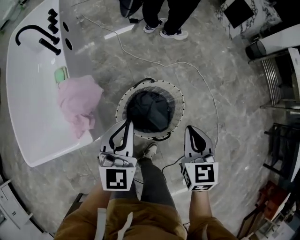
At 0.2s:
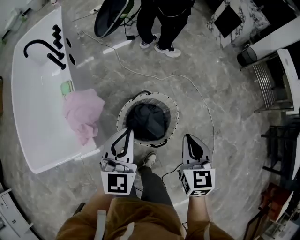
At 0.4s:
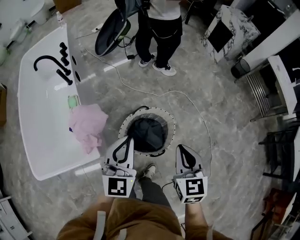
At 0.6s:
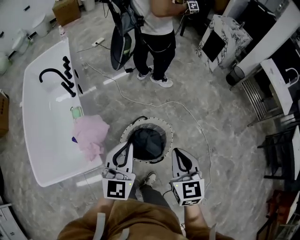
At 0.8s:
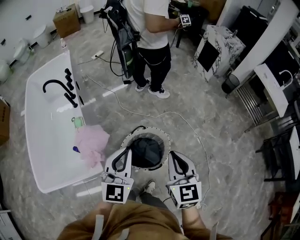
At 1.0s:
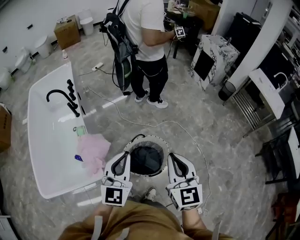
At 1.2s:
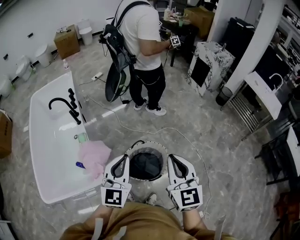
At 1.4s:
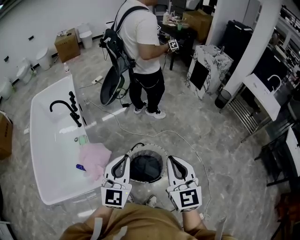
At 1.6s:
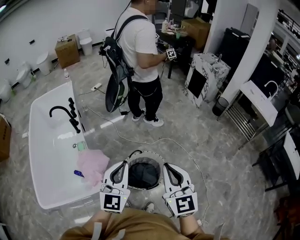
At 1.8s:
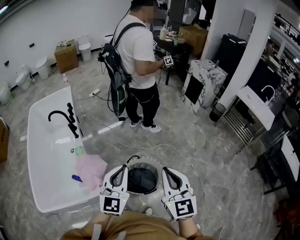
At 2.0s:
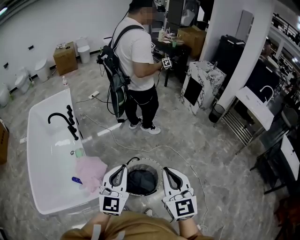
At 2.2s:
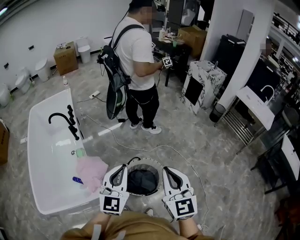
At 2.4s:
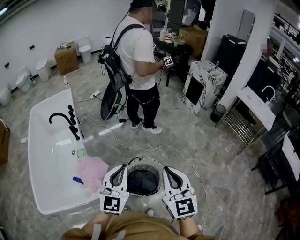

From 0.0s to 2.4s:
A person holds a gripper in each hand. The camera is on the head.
From 0.0s to 1.2s: The two grippers go some 30 cm upward. The right gripper turns by some 30 degrees.
From 1.2s to 2.4s: There are only small adjustments of the grippers.

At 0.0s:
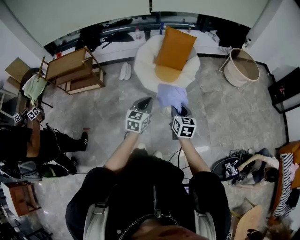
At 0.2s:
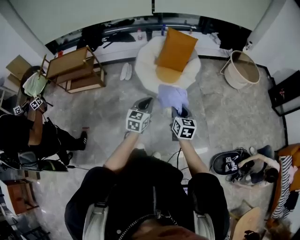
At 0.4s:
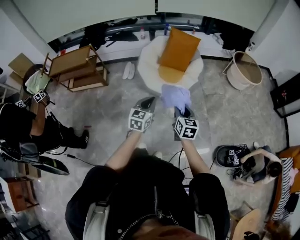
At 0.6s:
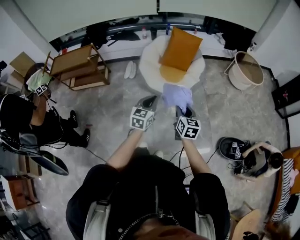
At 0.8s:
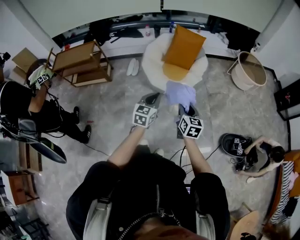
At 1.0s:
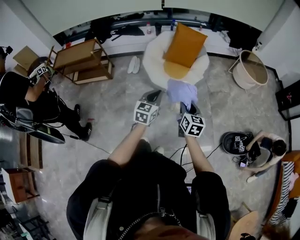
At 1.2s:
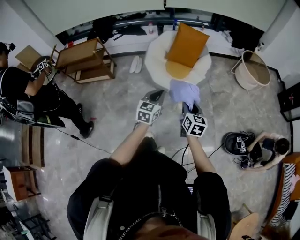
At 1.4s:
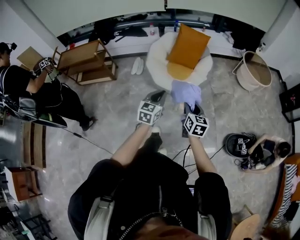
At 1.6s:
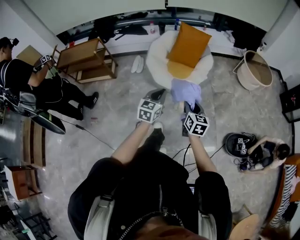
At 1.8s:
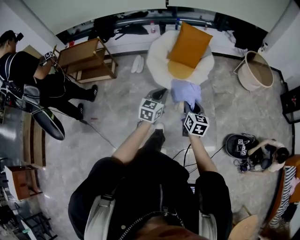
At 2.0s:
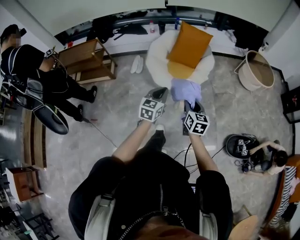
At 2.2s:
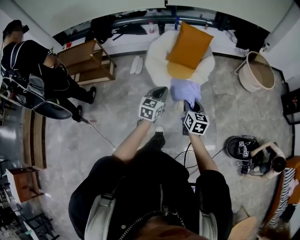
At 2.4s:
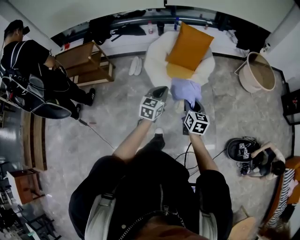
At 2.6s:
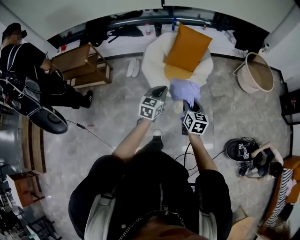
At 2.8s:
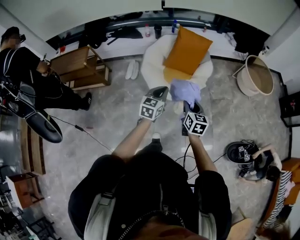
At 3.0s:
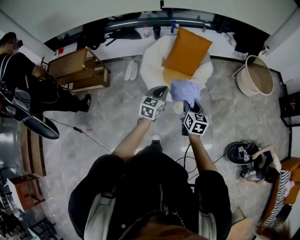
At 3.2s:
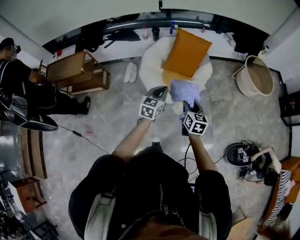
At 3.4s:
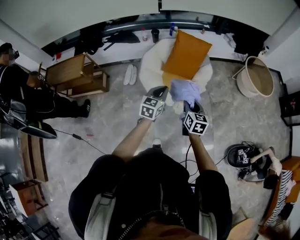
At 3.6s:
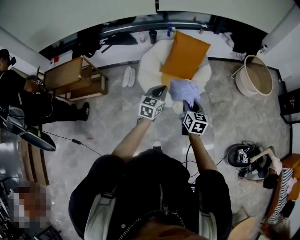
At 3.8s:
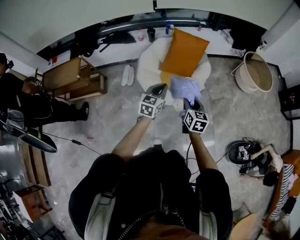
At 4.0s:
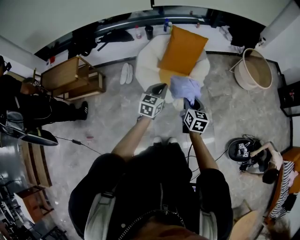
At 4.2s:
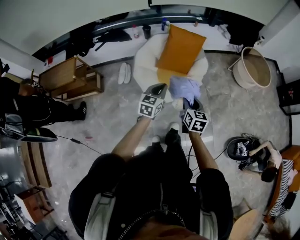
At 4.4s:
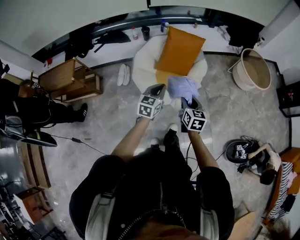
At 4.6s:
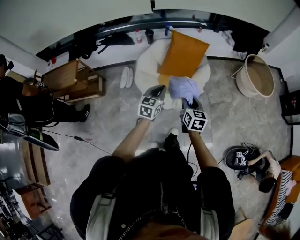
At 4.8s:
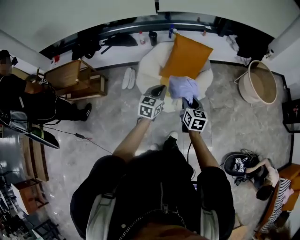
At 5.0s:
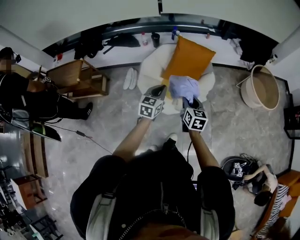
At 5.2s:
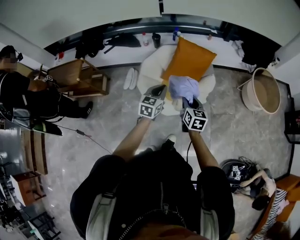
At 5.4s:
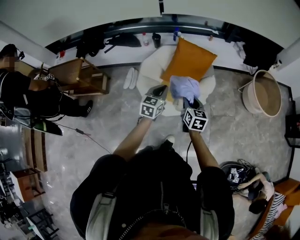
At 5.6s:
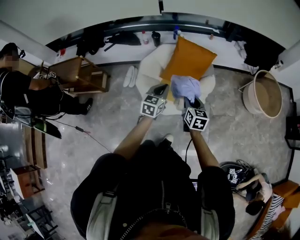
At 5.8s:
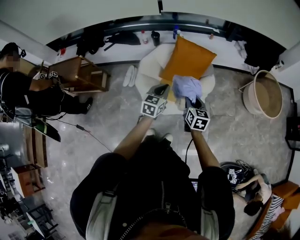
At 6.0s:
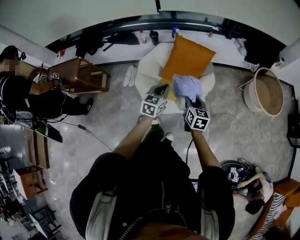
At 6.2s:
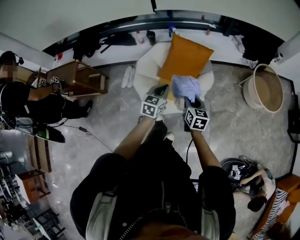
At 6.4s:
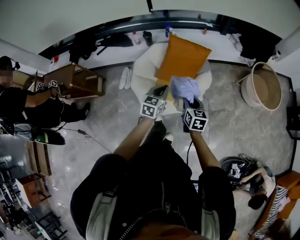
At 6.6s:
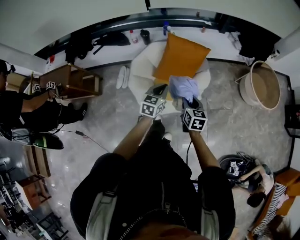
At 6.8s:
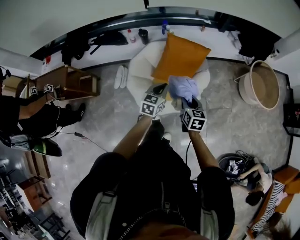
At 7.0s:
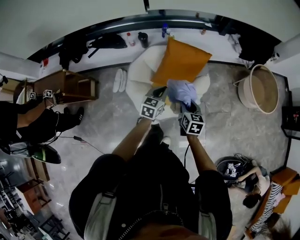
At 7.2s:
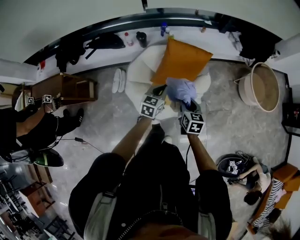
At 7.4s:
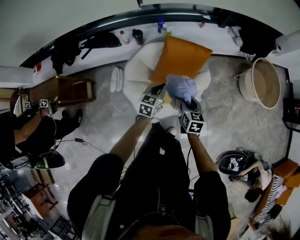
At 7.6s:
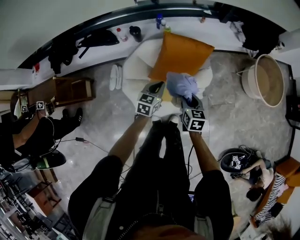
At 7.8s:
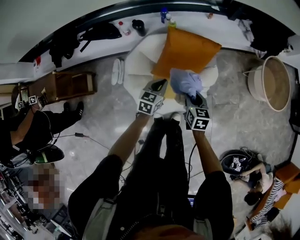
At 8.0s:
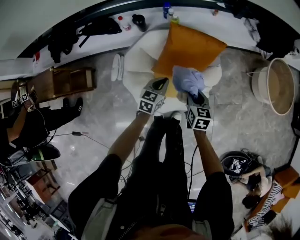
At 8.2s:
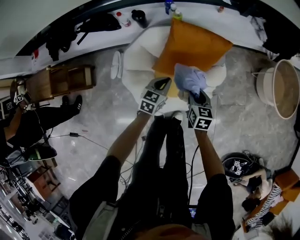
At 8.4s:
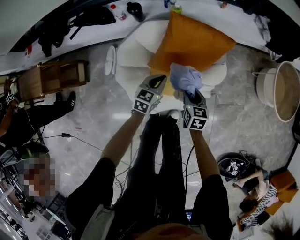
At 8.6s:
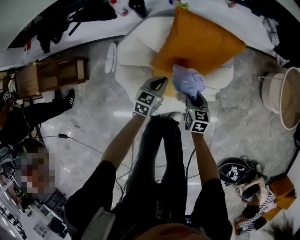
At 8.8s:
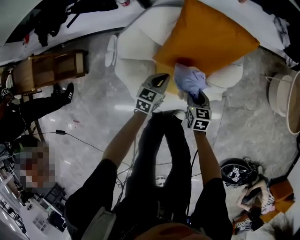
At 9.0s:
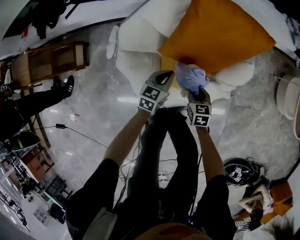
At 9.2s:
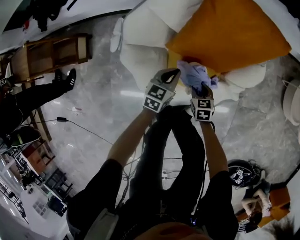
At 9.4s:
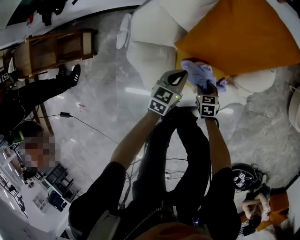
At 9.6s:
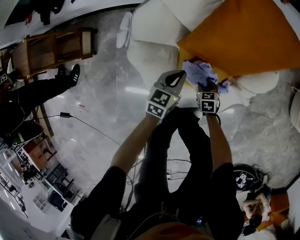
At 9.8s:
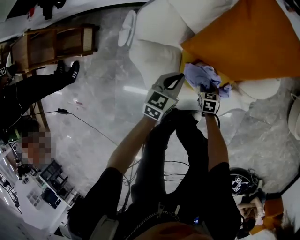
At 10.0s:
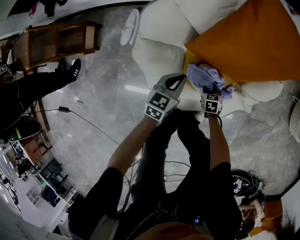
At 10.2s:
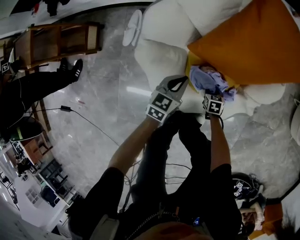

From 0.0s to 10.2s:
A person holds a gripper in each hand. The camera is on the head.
From 0.0s to 1.4s: The grippers stay close to where they were, moving slightly.
From 1.4s to 3.0s: The two grippers go some 25 cm forward.
From 3.0s to 4.4s: Both grippers move forward, about 10 cm.
From 4.4s to 5.8s: The grippers both shift forward and to the right by roughly 15 cm.
From 5.8s to 7.2s: The right gripper goes some 15 cm forward, to the left and downward; the left gripper goes about 15 cm forward and downward.
From 7.2s to 8.8s: The two grippers go approximately 35 cm downward.
From 8.8s to 10.2s: The left gripper moves downward and to the left, about 15 cm. Meanwhile the right gripper is displaced downward by roughly 30 cm, and rotates some 20 degrees.

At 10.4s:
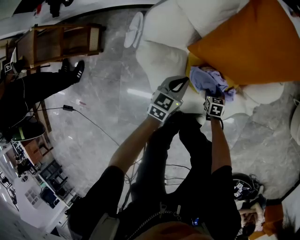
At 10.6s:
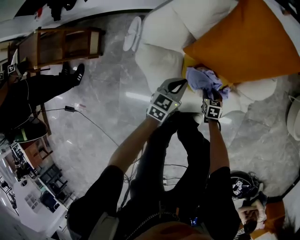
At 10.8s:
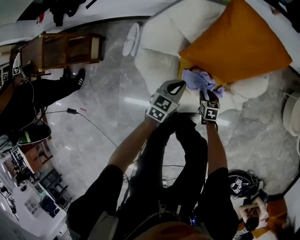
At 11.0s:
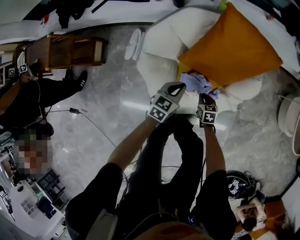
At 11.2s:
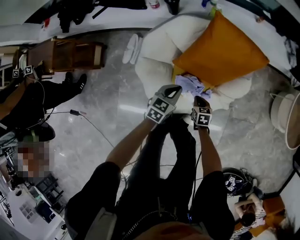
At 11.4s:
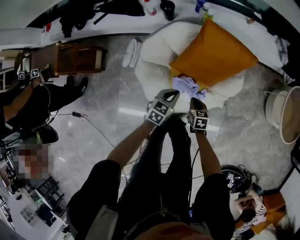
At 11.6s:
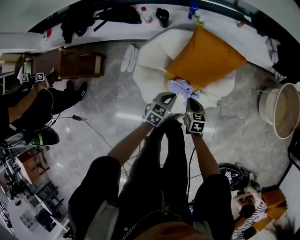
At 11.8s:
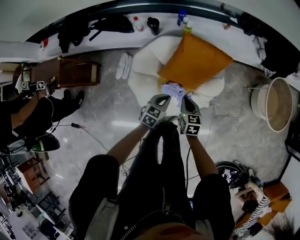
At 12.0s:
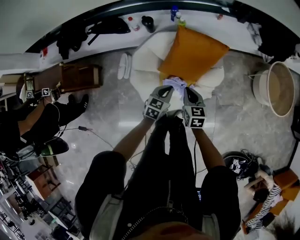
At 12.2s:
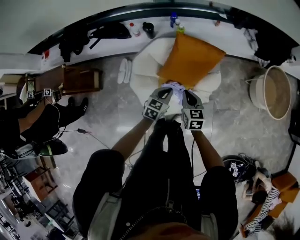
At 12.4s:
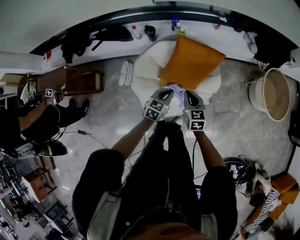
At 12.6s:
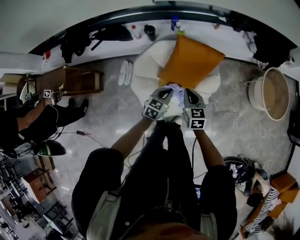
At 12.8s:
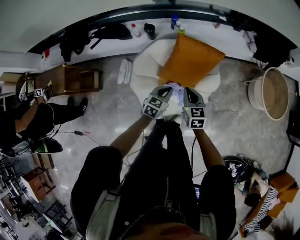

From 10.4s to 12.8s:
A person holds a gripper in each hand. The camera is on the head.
From 10.4s to 11.6s: The left gripper moves upward, about 25 cm. Meanwhile the right gripper heads upward, covering approximately 40 cm, and closes.
From 11.6s to 12.8s: The left gripper is displaced upward by some 10 cm. Meanwhile the right gripper moves upward, approximately 20 cm.

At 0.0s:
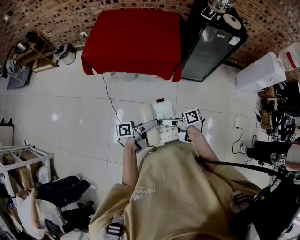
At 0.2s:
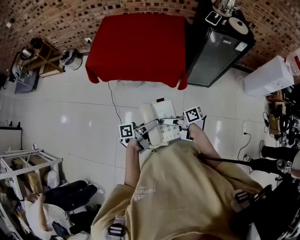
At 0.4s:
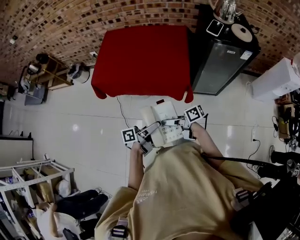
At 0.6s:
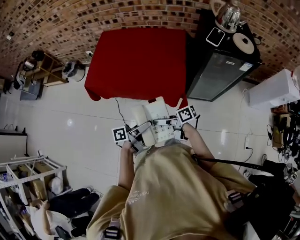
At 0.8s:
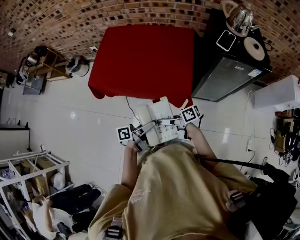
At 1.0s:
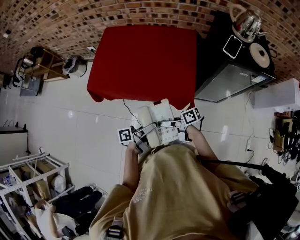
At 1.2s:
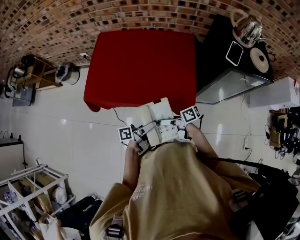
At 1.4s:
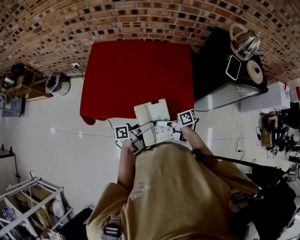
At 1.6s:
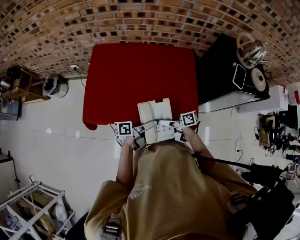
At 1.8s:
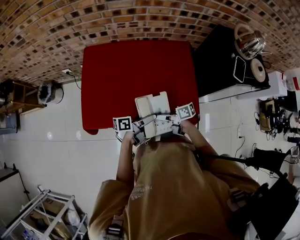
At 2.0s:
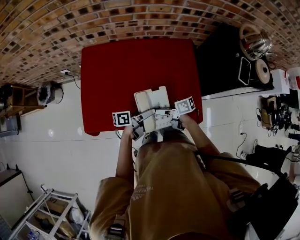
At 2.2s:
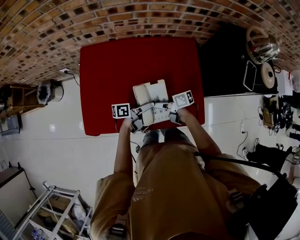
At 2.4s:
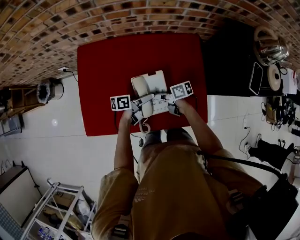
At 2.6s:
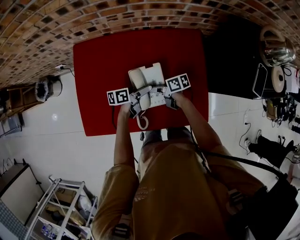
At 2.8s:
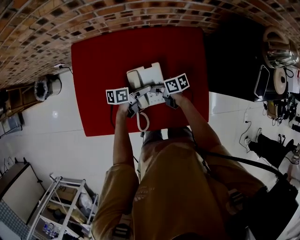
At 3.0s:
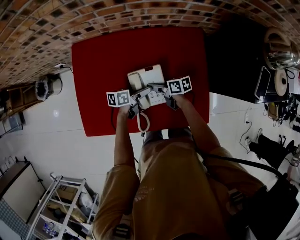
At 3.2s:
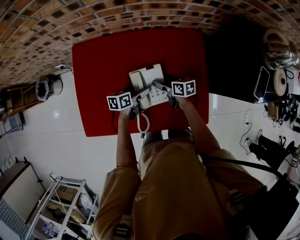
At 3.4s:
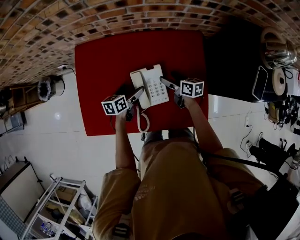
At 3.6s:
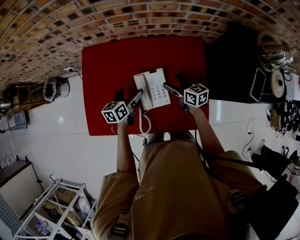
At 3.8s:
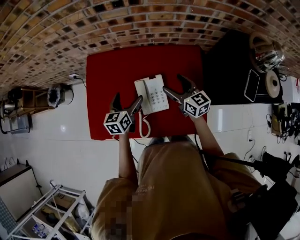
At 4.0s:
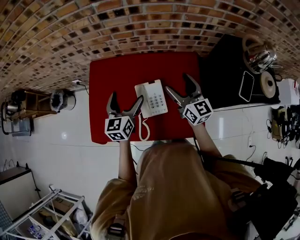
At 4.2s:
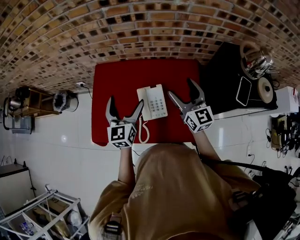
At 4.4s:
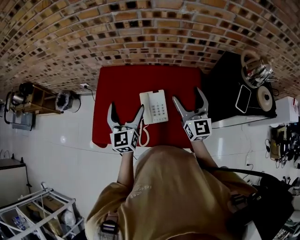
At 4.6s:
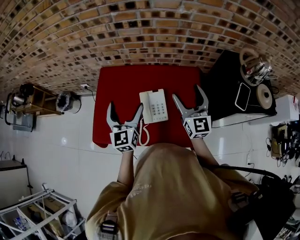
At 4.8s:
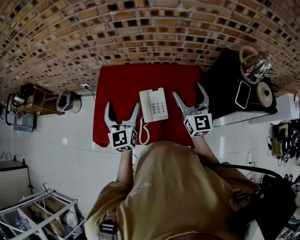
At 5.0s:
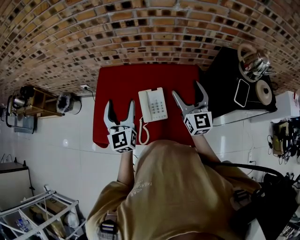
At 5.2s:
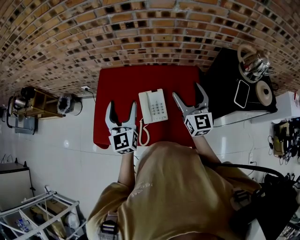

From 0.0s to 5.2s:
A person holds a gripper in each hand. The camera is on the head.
From 0.0s to 1.8s: The two grippers travel together, approximately 60 cm.
From 1.8s to 3.4s: The left gripper ends up about 30 cm from where it was, and points its fingers some 30 degrees further downward, while the right gripper moves approximately 30 cm, and swivels some 30 degrees.
From 3.4s to 5.2s: Both grippers travel together upward, some 40 cm. The left gripper tips its fingers upward by approximately 30 degrees. Meanwhile the right gripper tips its fingers upward by about 30 degrees.

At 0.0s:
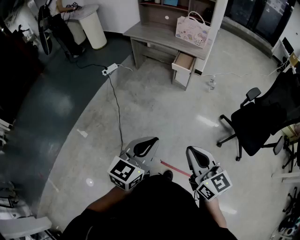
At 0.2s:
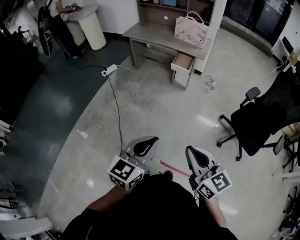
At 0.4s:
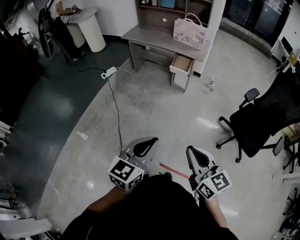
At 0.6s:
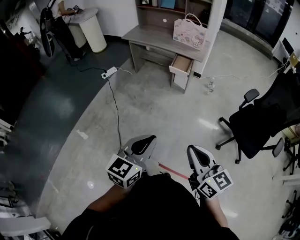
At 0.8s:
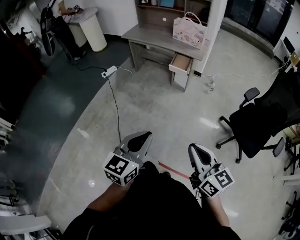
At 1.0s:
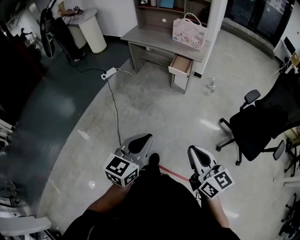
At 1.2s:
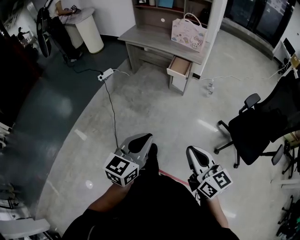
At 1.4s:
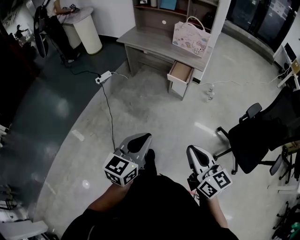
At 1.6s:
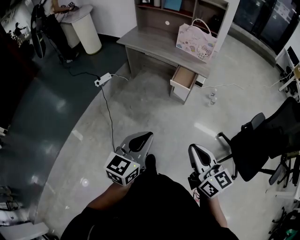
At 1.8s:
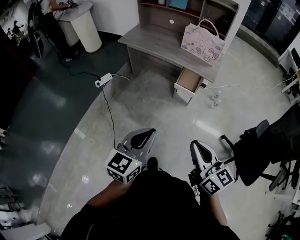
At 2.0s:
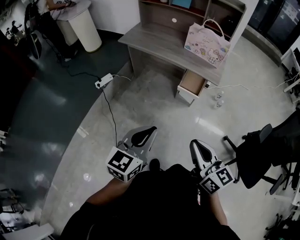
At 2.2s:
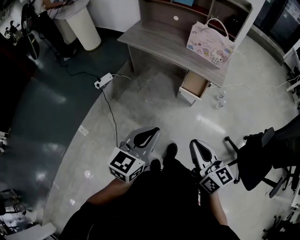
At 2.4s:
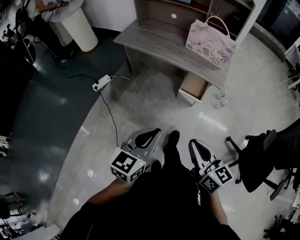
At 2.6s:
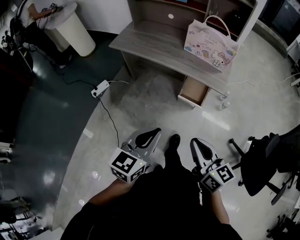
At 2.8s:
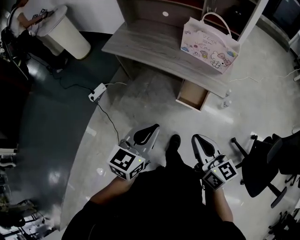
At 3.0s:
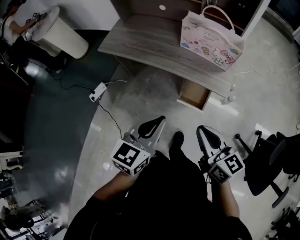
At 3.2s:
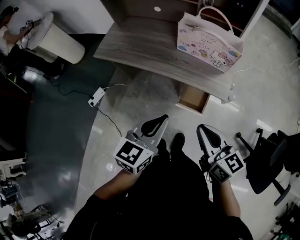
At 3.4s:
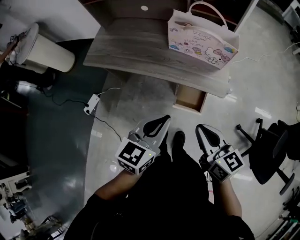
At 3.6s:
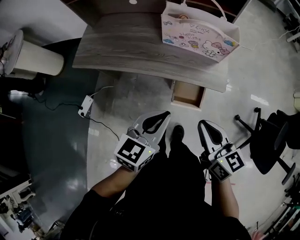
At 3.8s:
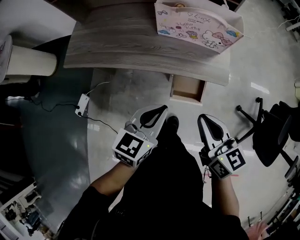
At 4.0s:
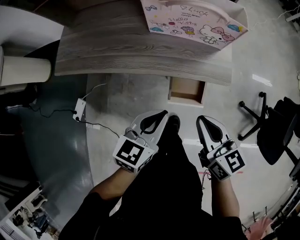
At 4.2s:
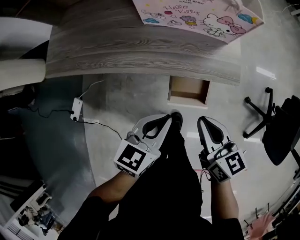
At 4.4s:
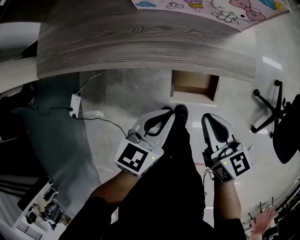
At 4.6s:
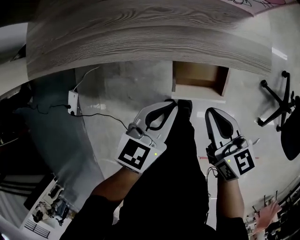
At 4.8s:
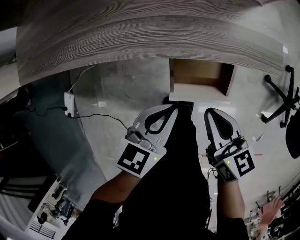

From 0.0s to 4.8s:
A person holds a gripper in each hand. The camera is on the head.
From 0.0s to 1.6s: Both grippers travel together forward, about 25 cm.
From 1.6s to 3.2s: The two grippers travel together, forward, roughly 50 cm.
From 3.2s to 4.8s: Both grippers move downward, approximately 35 cm. The left gripper changes its angle by some 30 degrees, while the right gripper changes its angle by approximately 30 degrees.
